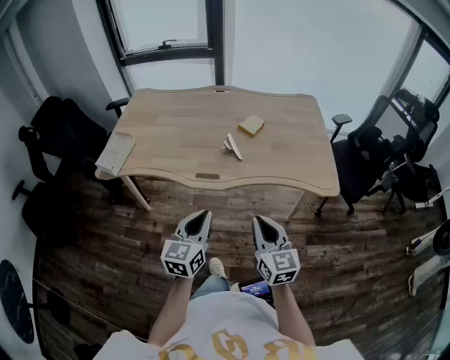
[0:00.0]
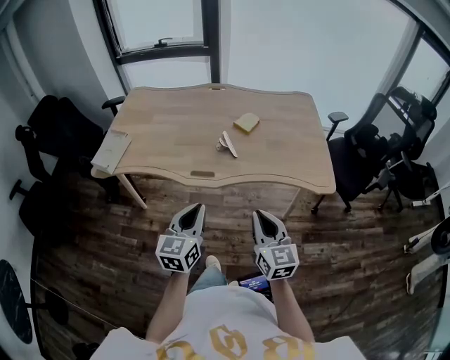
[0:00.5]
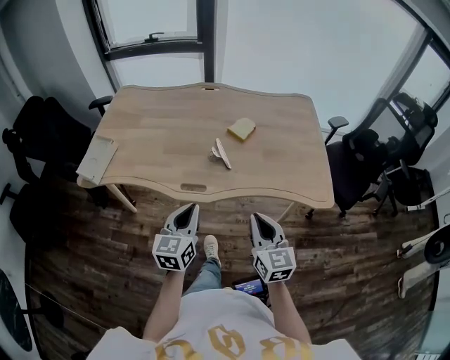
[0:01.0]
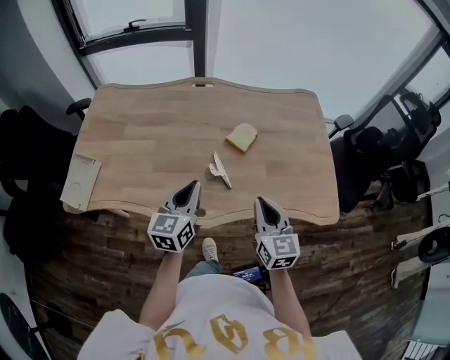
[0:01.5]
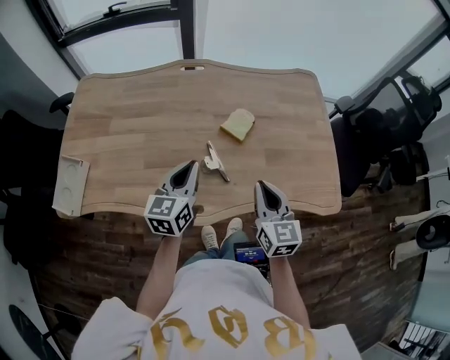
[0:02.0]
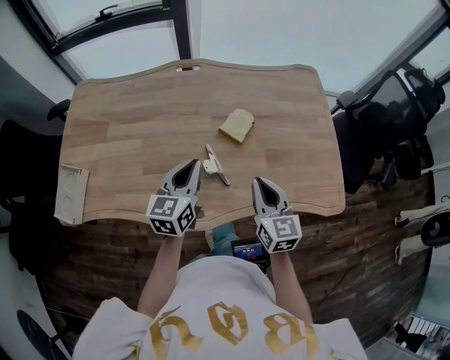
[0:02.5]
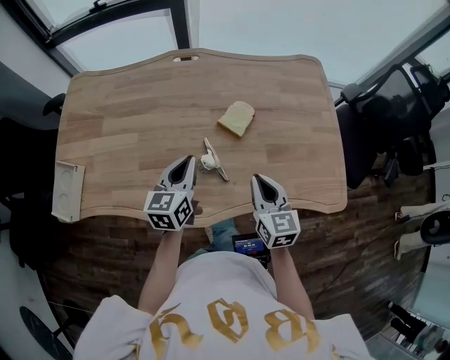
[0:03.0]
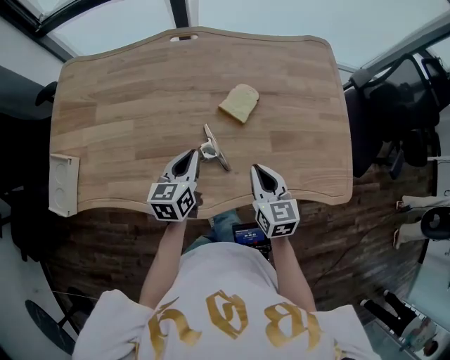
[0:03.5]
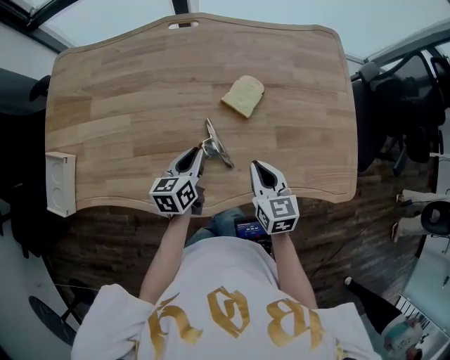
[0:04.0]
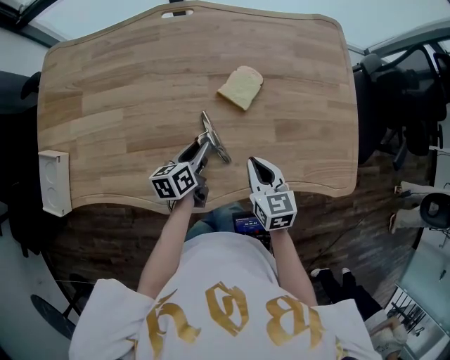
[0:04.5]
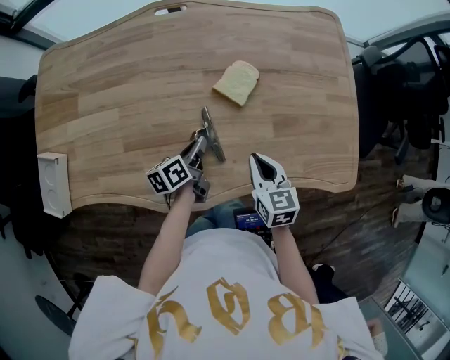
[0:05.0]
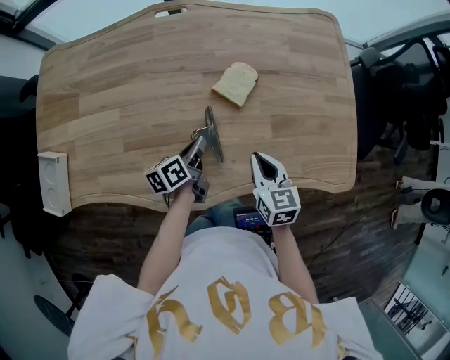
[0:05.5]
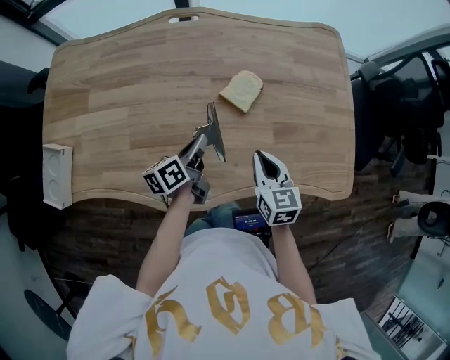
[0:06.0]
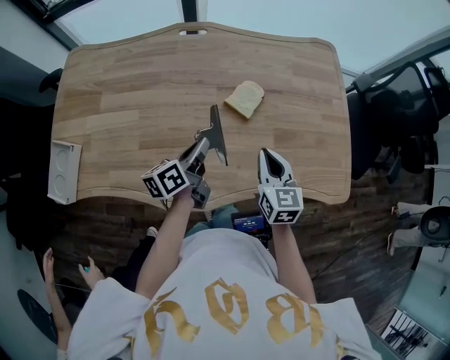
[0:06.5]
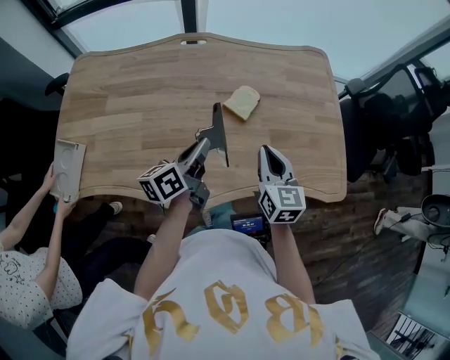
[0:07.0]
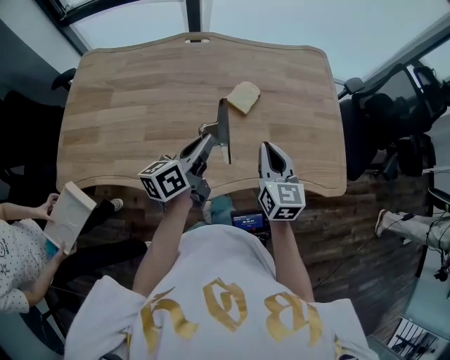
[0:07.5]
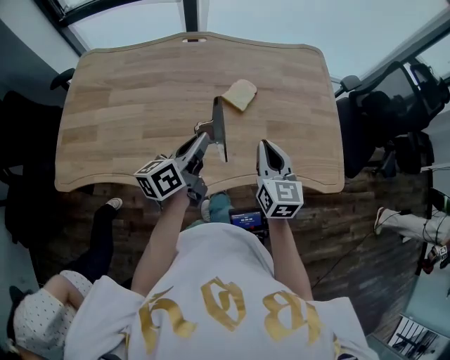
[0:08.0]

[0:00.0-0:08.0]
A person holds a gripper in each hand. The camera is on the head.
0:00.0 to 0:02.0: Both grippers travel together forward, approximately 35 cm.
0:02.0 to 0:04.0: The left gripper shifts roughly 15 cm downward, and rotates roughly 20 degrees. The right gripper is displaced downward and forward by approximately 15 cm.
0:04.0 to 0:06.0: The left gripper swivels some 30 degrees, and opens, then closes once more.
0:06.0 to 0:08.0: The left gripper moves upward and backward, about 15 cm, and turns by approximately 20 degrees. The right gripper goes about 10 cm upward.

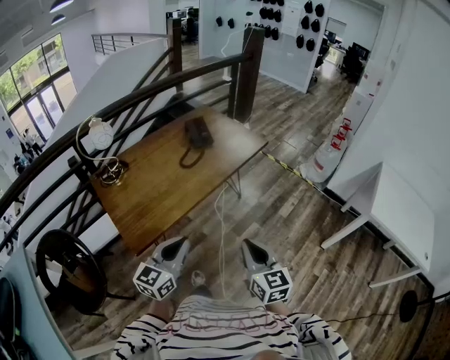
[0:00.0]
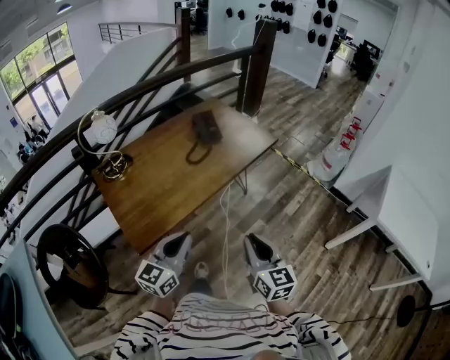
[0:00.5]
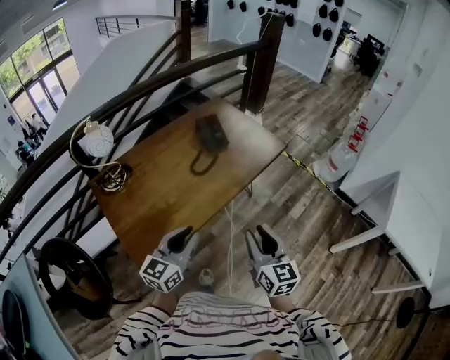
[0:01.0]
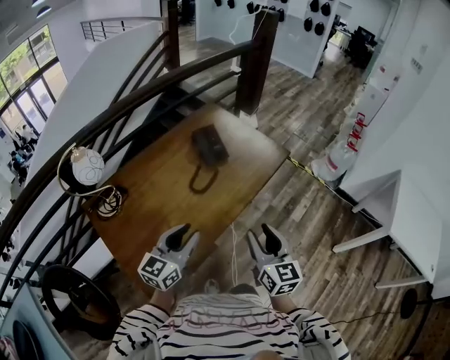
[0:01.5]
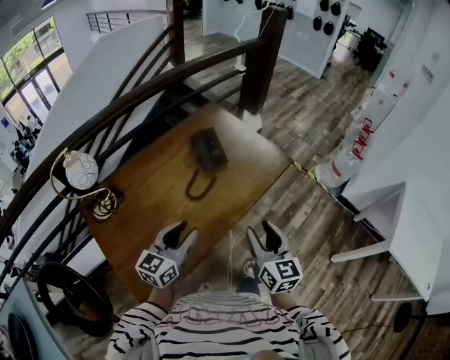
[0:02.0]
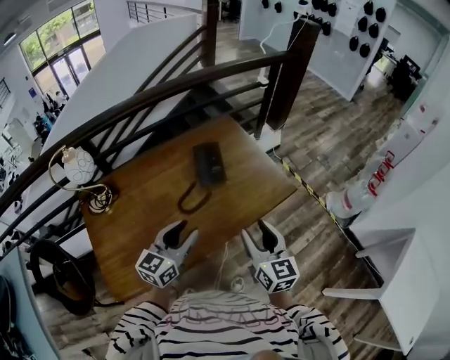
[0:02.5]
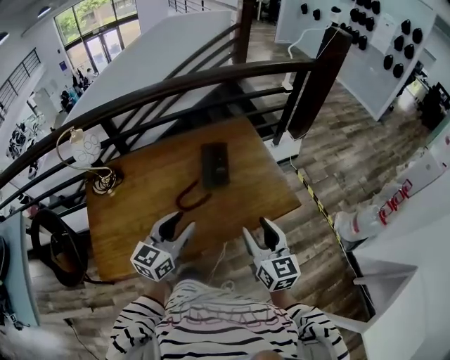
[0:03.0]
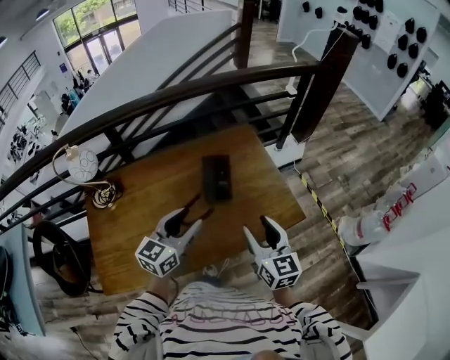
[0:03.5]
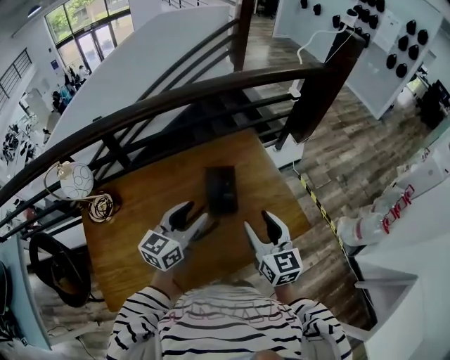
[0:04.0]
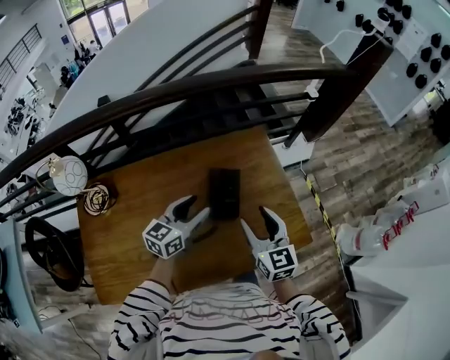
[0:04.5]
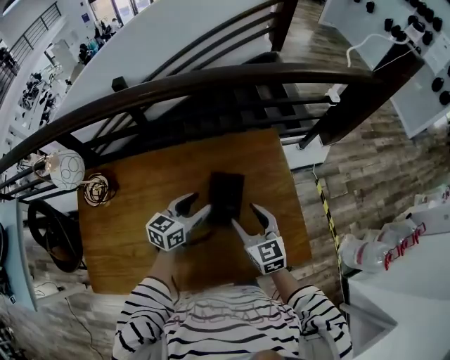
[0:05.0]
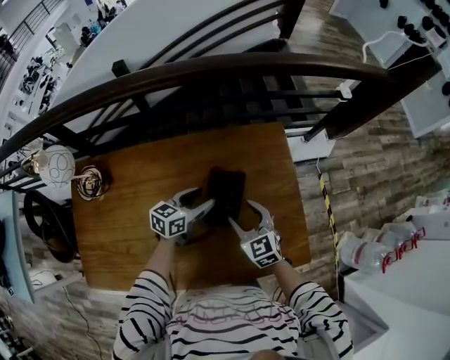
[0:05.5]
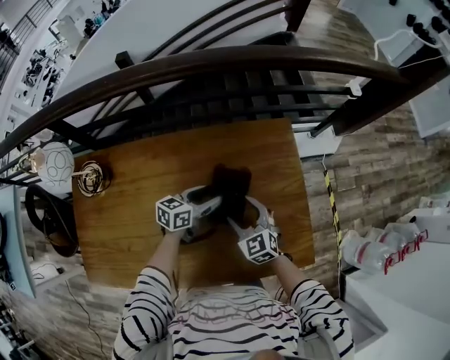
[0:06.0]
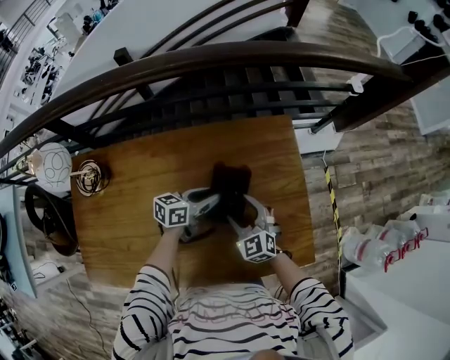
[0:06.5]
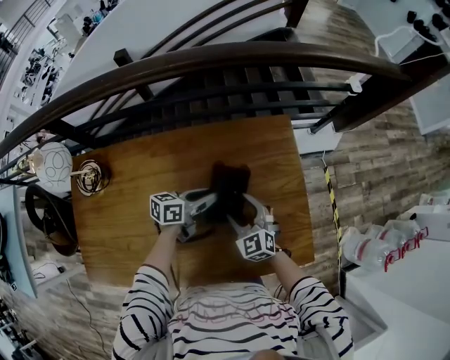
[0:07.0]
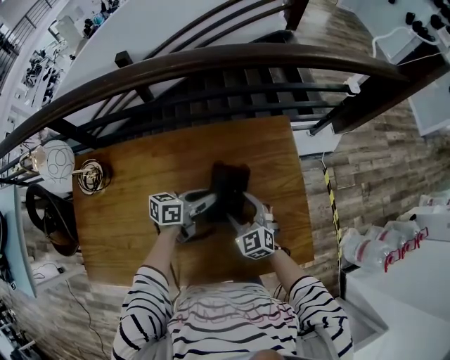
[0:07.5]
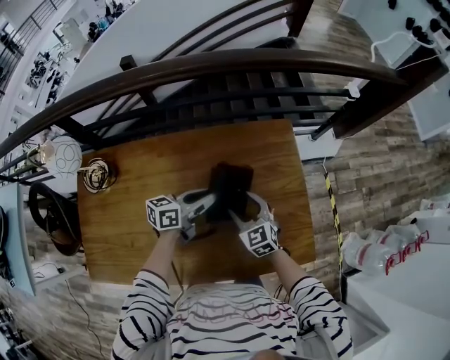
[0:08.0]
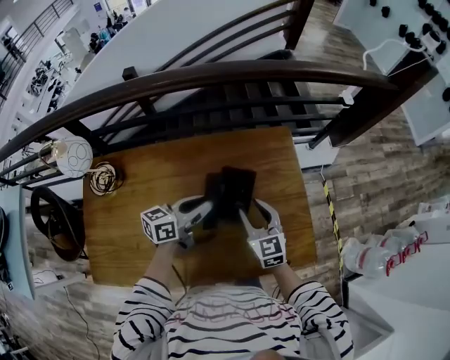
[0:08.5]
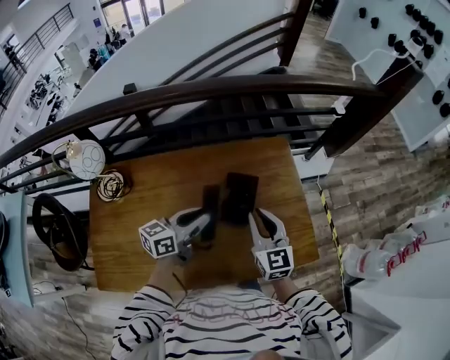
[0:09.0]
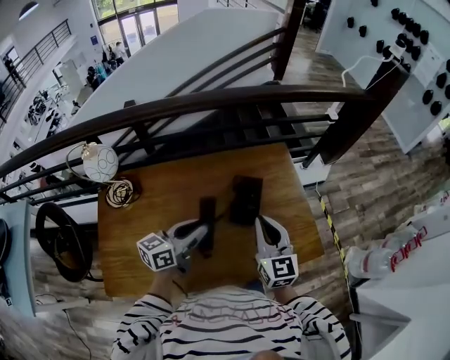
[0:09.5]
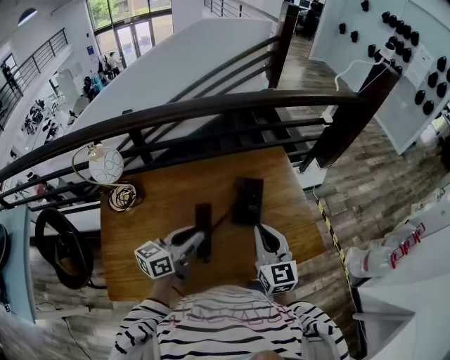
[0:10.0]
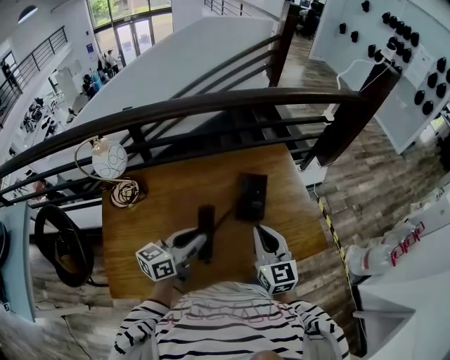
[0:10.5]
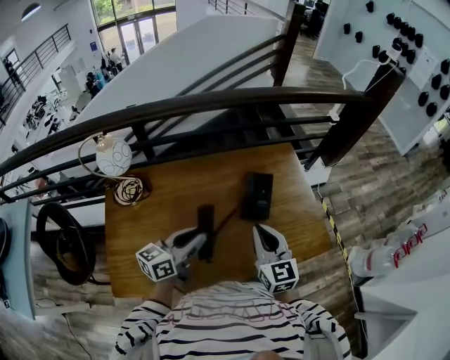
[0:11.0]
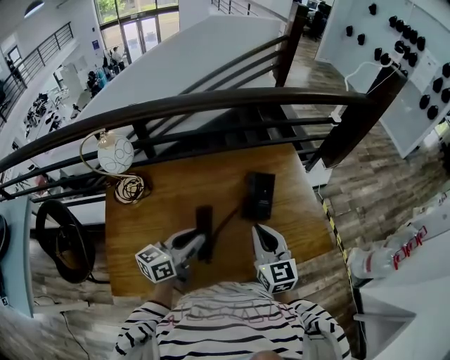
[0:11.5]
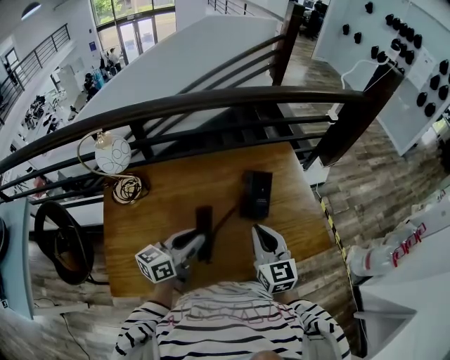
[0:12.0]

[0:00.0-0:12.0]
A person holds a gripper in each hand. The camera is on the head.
0:00.0 to 0:02.0: The grippers both shift forward by roughly 35 cm. The right gripper opens up. Meanwhile the left gripper opens its fingers.
0:02.0 to 0:04.0: The two grippers go some 30 cm forward. The right gripper swivels about 30 degrees.
0:04.0 to 0:06.0: Both grippers move downward and forward, about 30 cm. The right gripper turns by some 40 degrees; the left gripper rotates approximately 30 degrees.
0:06.0 to 0:08.0: The left gripper goes about 5 cm upward, and closes up.
0:08.0 to 0:10.0: The right gripper heads upward and backward, covering some 30 cm, swivels about 30 degrees, and closes up. The left gripper goes roughly 30 cm backward, upward and to the left.
0:10.0 to 0:12.0: The left gripper changes place by about 5 cm, while the right gripper changes place by some 5 cm.

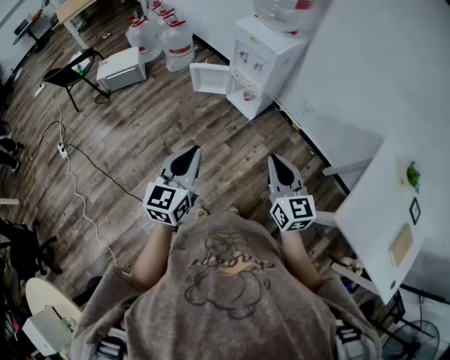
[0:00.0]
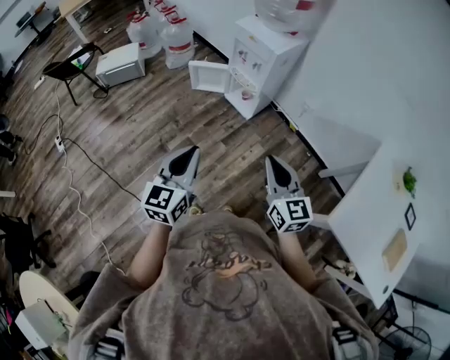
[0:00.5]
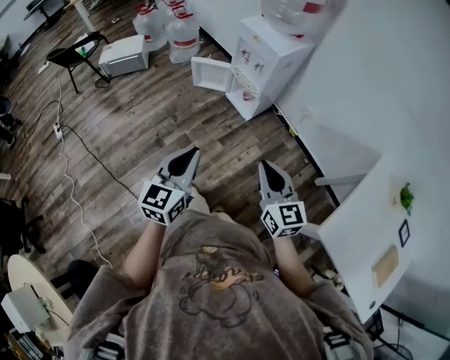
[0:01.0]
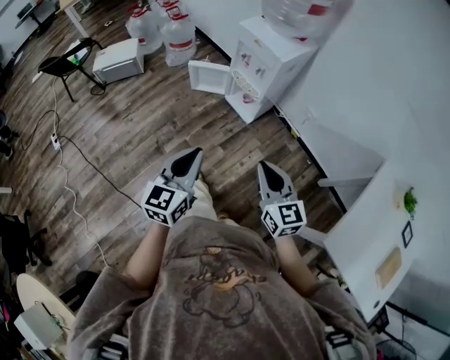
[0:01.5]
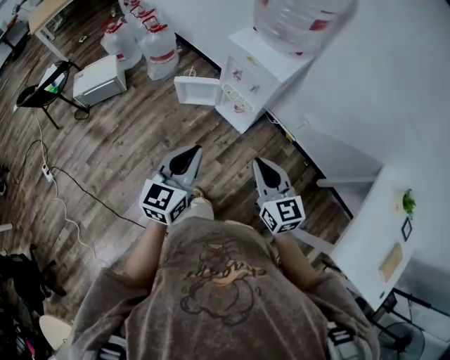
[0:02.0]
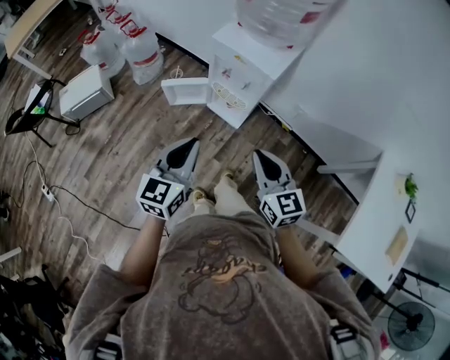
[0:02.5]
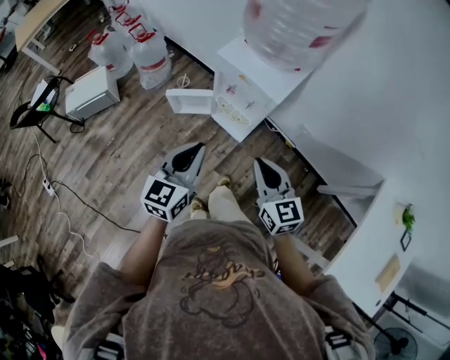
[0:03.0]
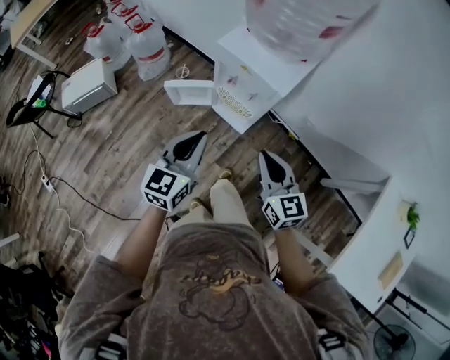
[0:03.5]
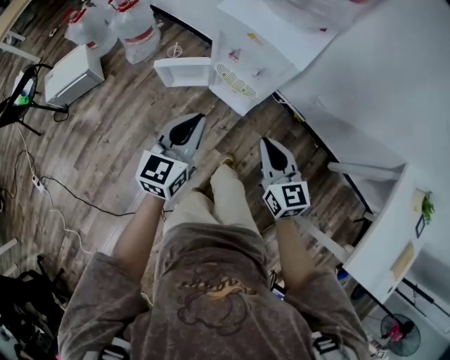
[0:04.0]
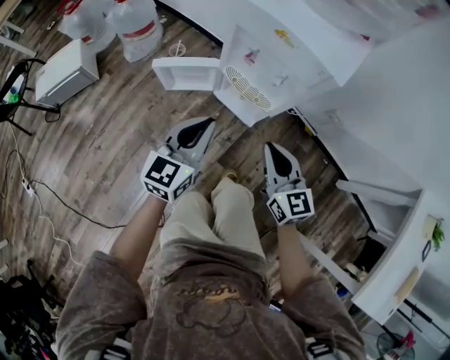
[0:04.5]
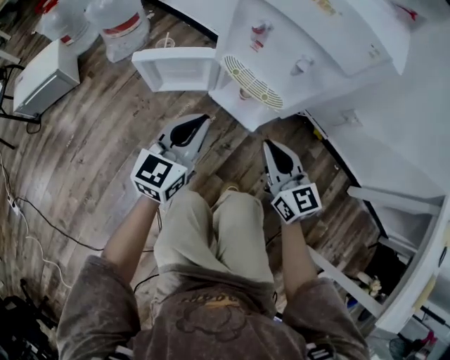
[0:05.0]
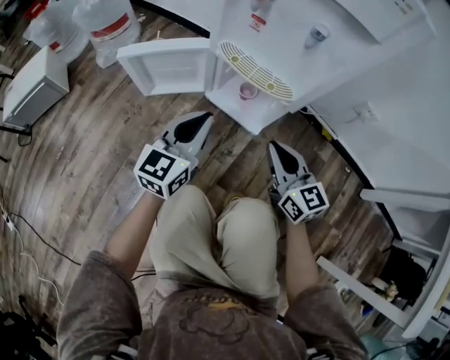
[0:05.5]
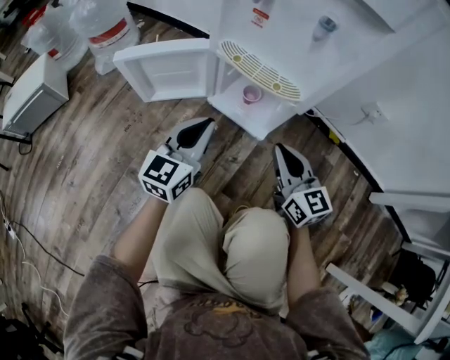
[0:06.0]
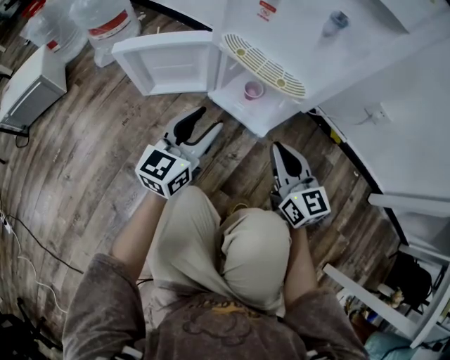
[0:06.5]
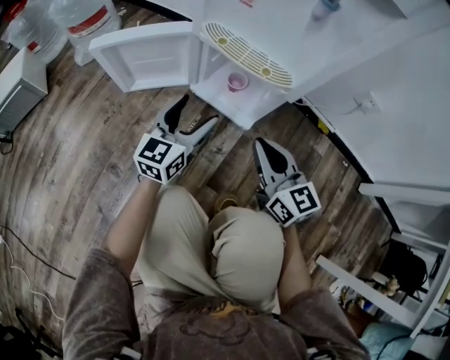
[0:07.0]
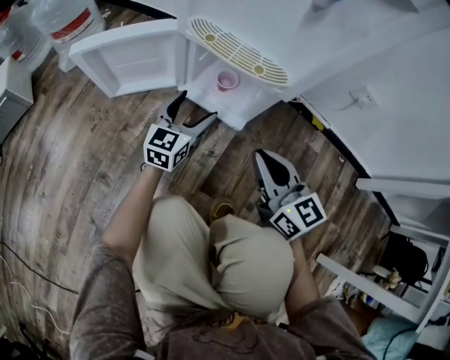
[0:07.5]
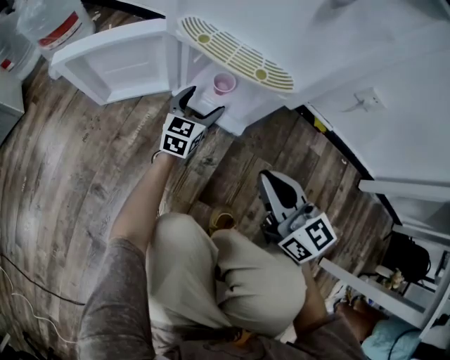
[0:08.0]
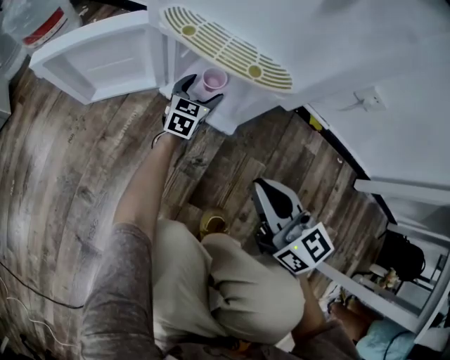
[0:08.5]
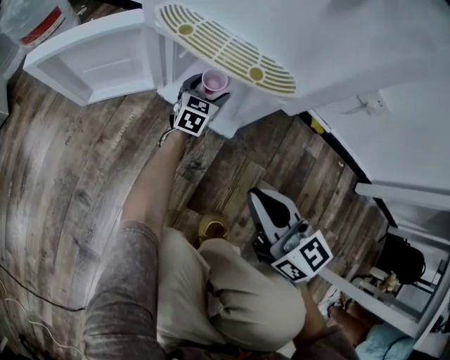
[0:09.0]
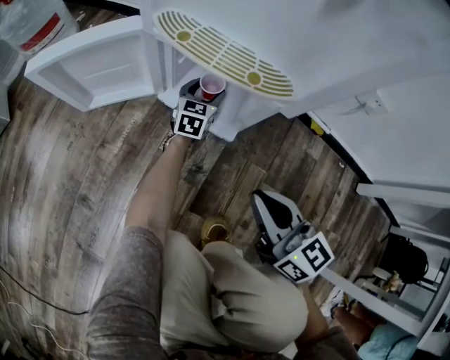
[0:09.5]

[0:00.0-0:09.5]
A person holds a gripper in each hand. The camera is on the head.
0:00.0 to 0:02.0: Both grippers travel together forward, roughly 25 cm.
0:02.0 to 0:04.0: The left gripper heads forward and downward, covering about 25 cm, while the right gripper heads downward and forward, covering roughly 25 cm.
0:04.0 to 0:05.5: Both grippers move downward, about 40 cm.
0:05.5 to 0:07.5: The left gripper shifts roughly 20 cm downward and forward, and opens up. Meanwhile the right gripper is displaced downward by roughly 5 cm.
0:07.5 to 0:09.5: The left gripper shifts some 20 cm downward, forward and to the right.
